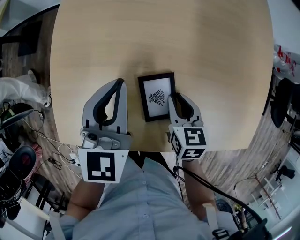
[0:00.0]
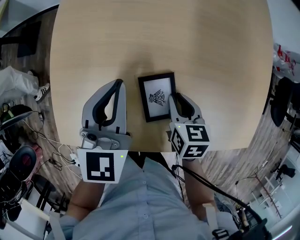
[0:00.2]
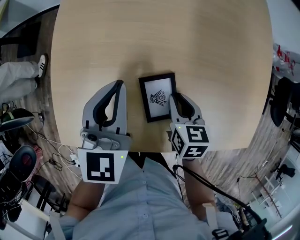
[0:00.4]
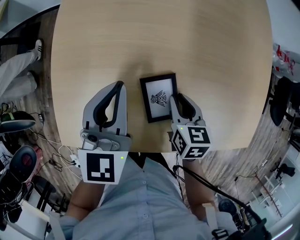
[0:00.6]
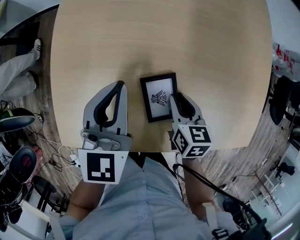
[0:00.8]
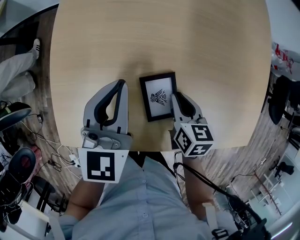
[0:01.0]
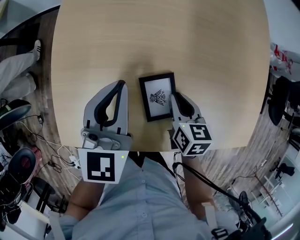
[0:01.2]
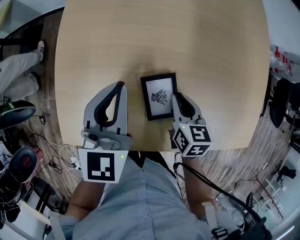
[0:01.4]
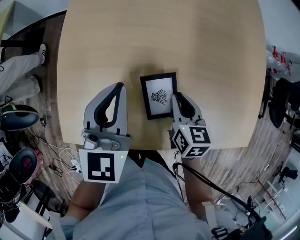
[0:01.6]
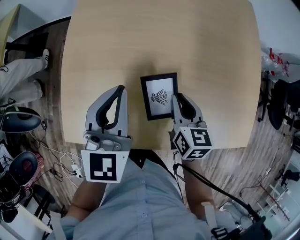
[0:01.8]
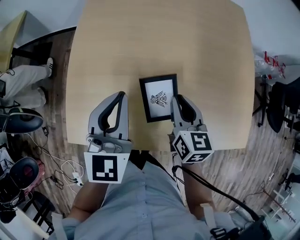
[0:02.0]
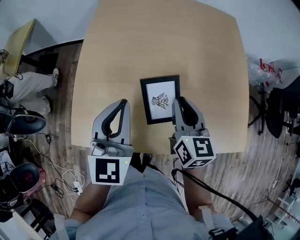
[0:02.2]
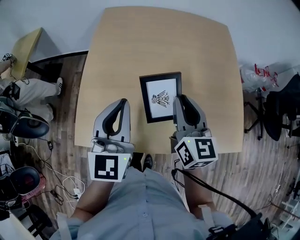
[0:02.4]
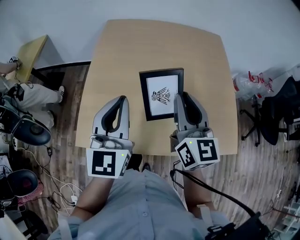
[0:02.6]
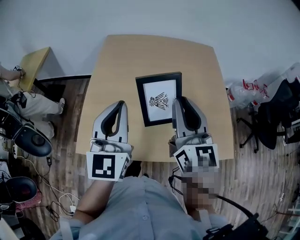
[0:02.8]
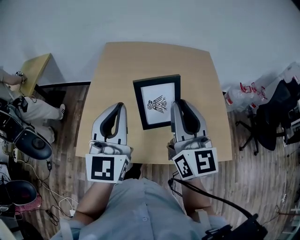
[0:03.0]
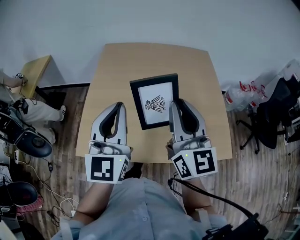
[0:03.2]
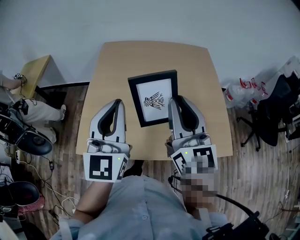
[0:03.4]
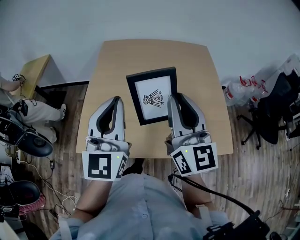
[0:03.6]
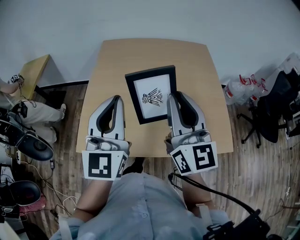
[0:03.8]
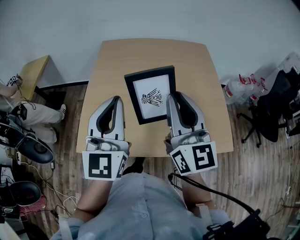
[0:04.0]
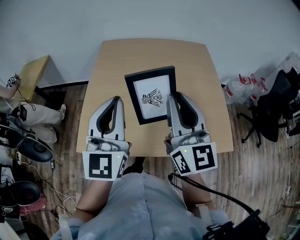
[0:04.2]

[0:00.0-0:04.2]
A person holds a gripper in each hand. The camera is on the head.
0:00.0 to 0:01.4: The grippers make only small movements.
0:01.4 to 0:02.8: The right gripper goes approximately 30 cm upward, and tilts its fingers roughly 50 degrees upward; the left gripper goes approximately 20 cm upward and backward, and changes its angle by about 30 degrees.
0:02.8 to 0:04.2: The grippers stay close to where they were, moving slightly.

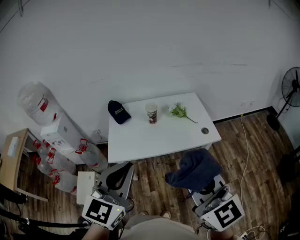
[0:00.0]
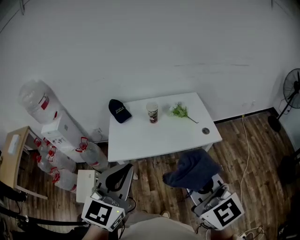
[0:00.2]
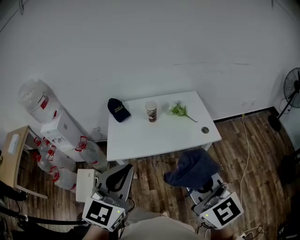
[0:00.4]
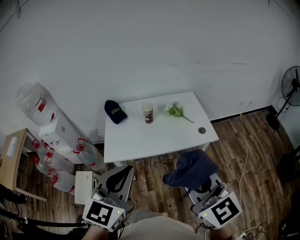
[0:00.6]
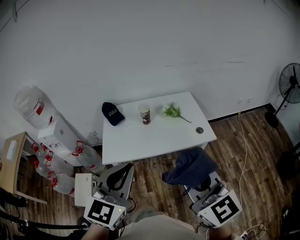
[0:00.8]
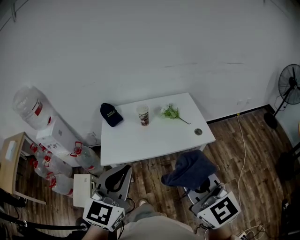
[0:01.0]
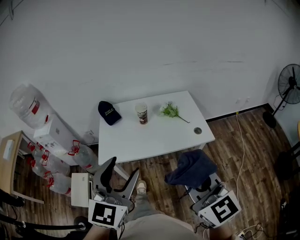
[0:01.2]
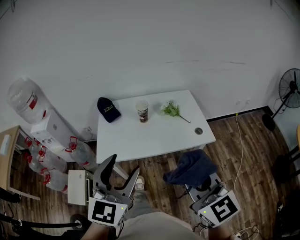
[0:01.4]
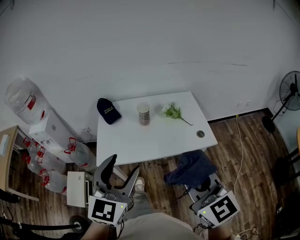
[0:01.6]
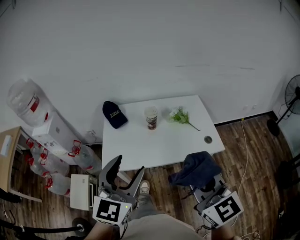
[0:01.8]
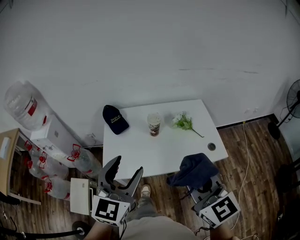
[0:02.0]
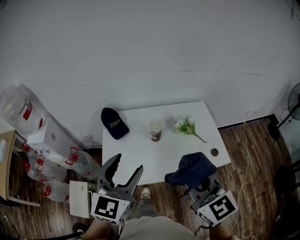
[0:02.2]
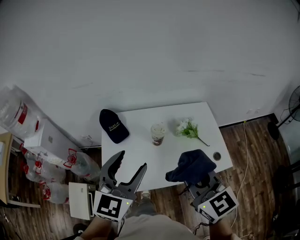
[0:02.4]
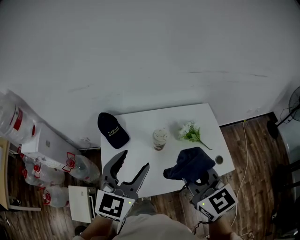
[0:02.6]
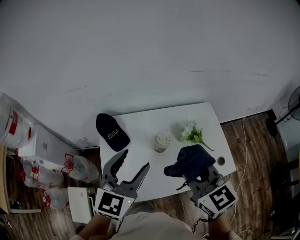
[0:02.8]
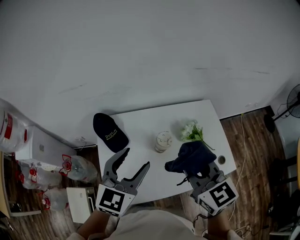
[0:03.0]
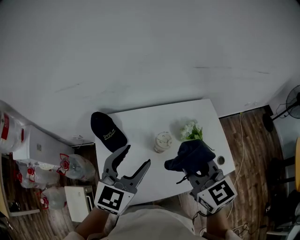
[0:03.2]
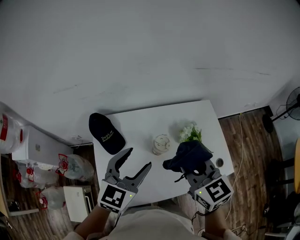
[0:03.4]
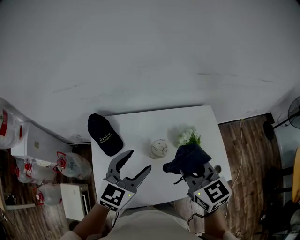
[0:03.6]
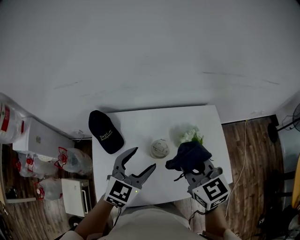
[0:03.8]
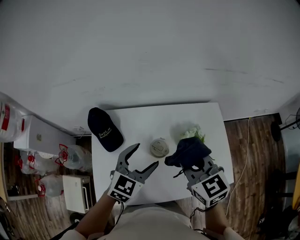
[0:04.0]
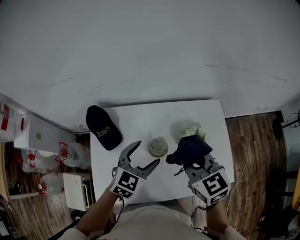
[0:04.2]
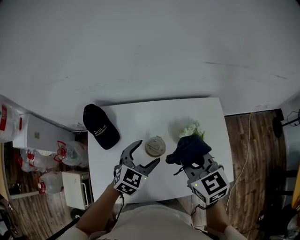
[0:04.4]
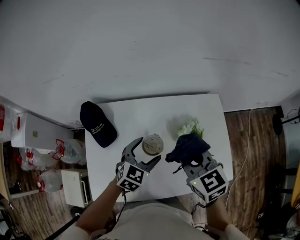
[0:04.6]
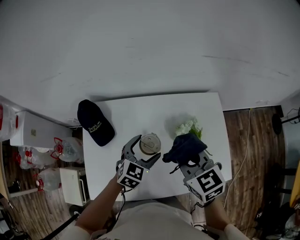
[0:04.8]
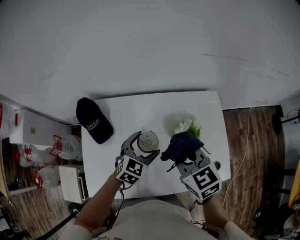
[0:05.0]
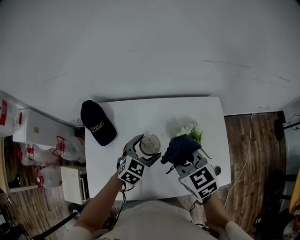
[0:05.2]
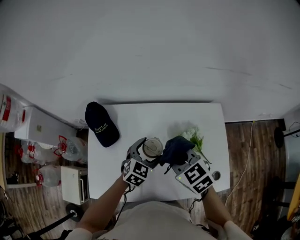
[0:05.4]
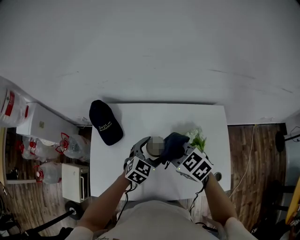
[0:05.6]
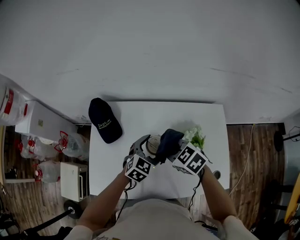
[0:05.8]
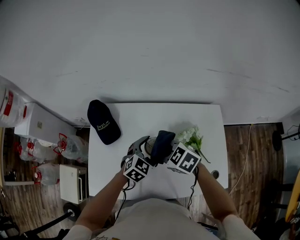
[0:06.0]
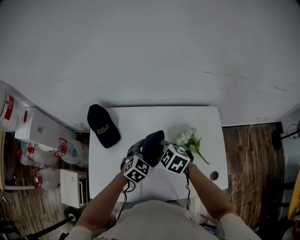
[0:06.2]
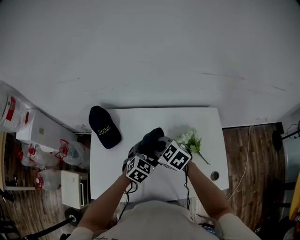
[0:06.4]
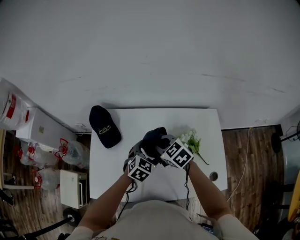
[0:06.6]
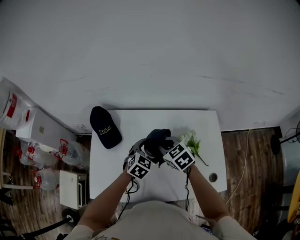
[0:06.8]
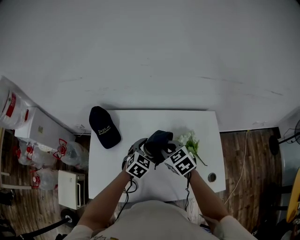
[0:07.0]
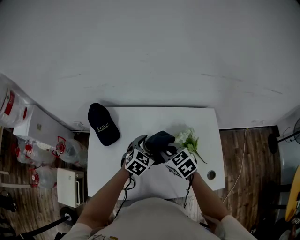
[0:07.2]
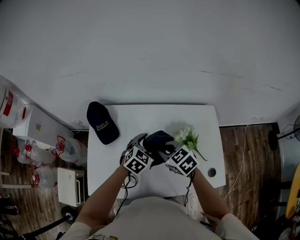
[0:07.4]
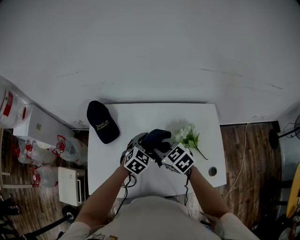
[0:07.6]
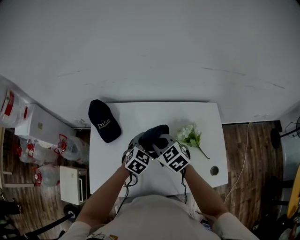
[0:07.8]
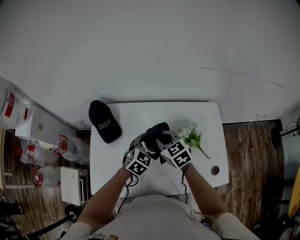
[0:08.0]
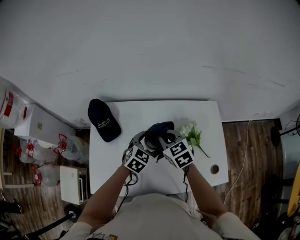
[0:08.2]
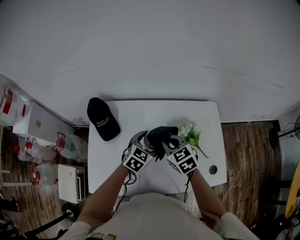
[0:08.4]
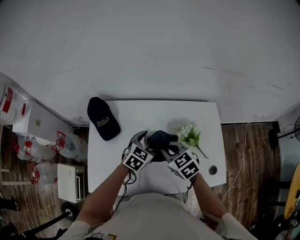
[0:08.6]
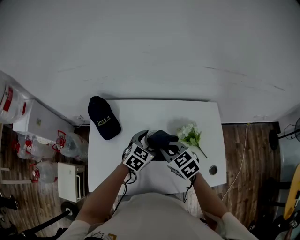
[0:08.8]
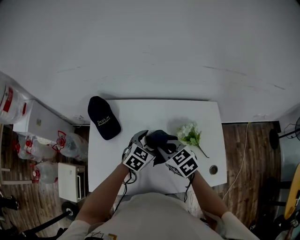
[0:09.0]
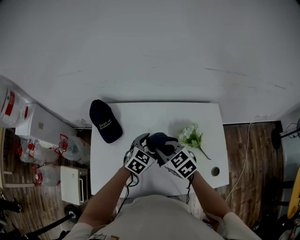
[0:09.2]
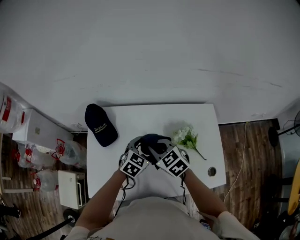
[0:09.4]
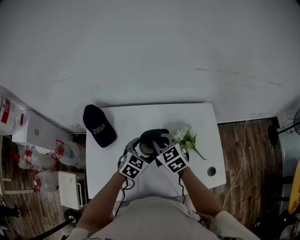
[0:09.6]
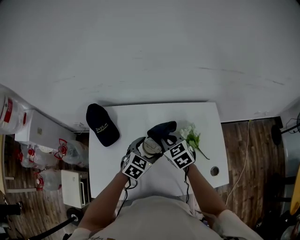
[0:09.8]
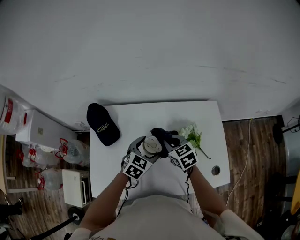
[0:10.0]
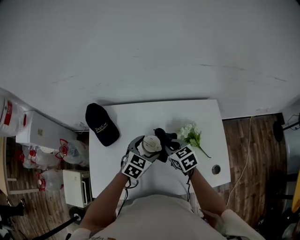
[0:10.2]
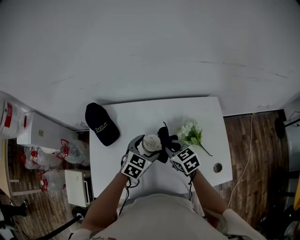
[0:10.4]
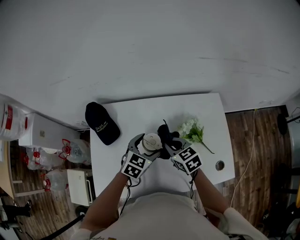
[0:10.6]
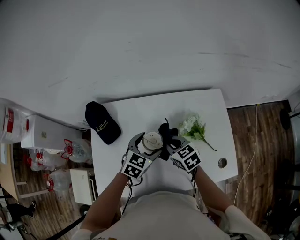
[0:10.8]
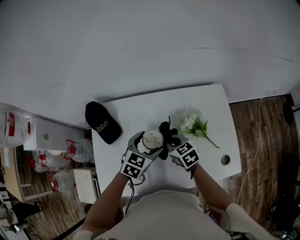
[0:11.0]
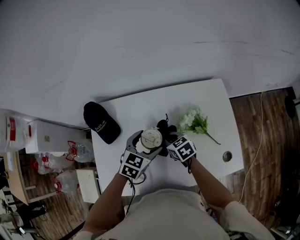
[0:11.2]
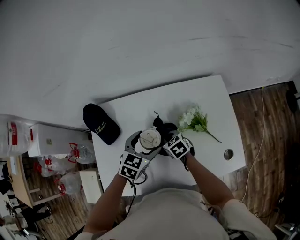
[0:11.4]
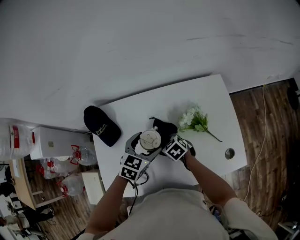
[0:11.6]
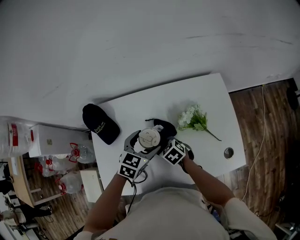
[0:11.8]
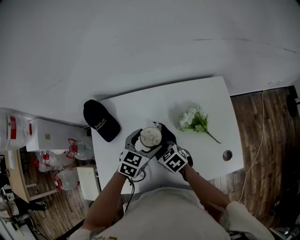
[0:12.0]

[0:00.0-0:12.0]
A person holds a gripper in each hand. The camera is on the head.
0:00.0 to 0:01.6: The right gripper heads forward and downward, covering approximately 10 cm, while the left gripper shifts approximately 10 cm forward, and opens up.
0:01.6 to 0:03.0: The grippers both shift forward by approximately 40 cm.
0:03.0 to 0:04.4: The right gripper shifts about 15 cm forward, downward and to the right. The left gripper moves downward, to the right and forward, some 25 cm.
0:04.4 to 0:06.0: The right gripper goes about 15 cm downward and to the left, and changes its angle by about 40 degrees. Meanwhile the left gripper ends up about 5 cm from where it was.
0:07.6 to 0:09.0: The grippers move only a little.
0:09.0 to 0:10.4: The right gripper moves approximately 5 cm.
0:10.4 to 0:12.0: The right gripper travels downward by about 5 cm.

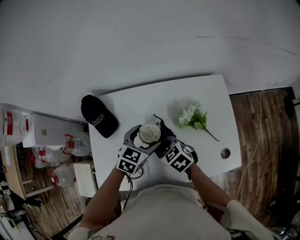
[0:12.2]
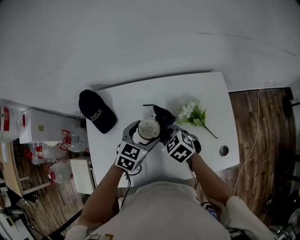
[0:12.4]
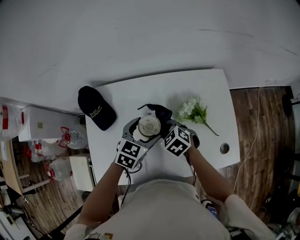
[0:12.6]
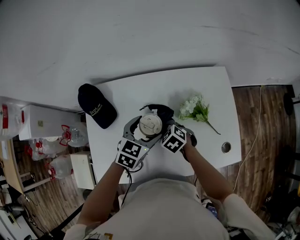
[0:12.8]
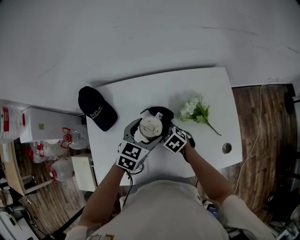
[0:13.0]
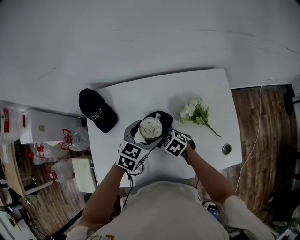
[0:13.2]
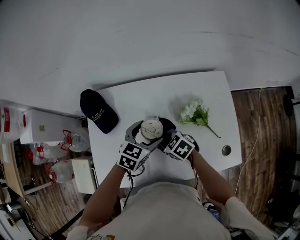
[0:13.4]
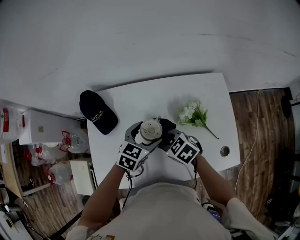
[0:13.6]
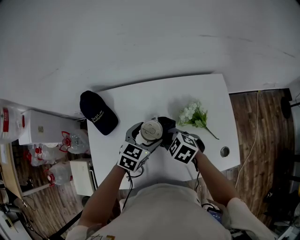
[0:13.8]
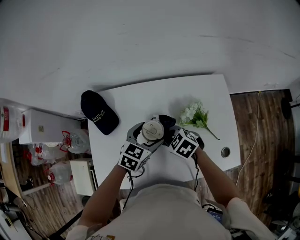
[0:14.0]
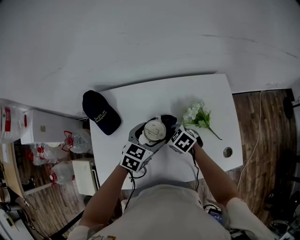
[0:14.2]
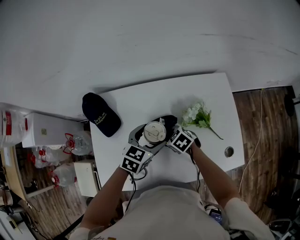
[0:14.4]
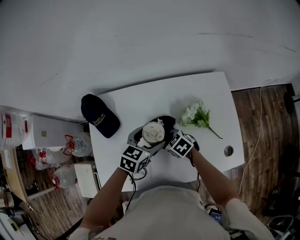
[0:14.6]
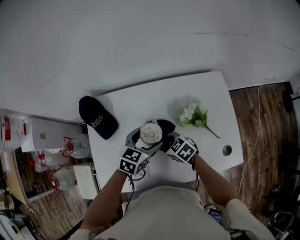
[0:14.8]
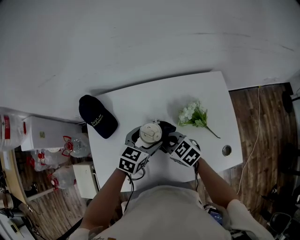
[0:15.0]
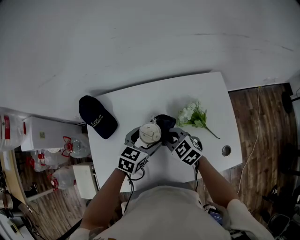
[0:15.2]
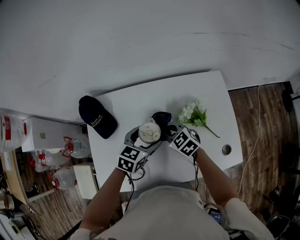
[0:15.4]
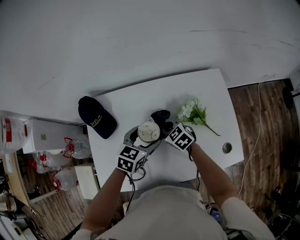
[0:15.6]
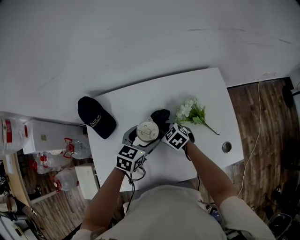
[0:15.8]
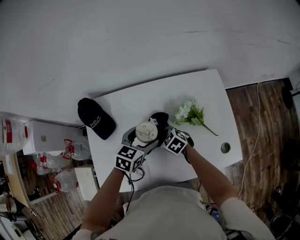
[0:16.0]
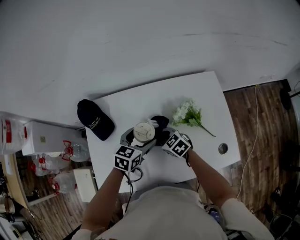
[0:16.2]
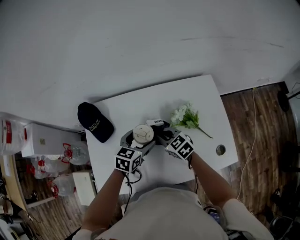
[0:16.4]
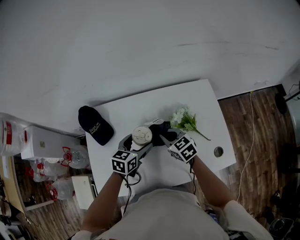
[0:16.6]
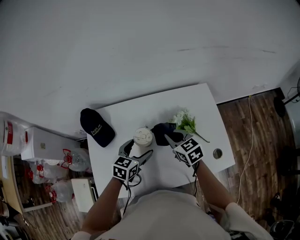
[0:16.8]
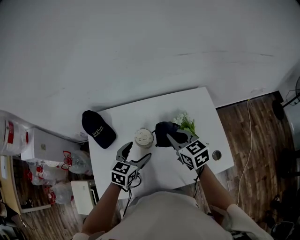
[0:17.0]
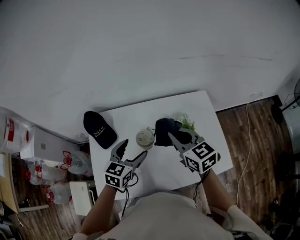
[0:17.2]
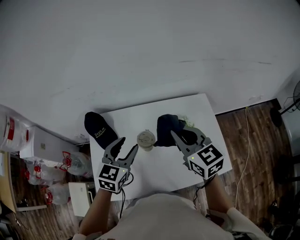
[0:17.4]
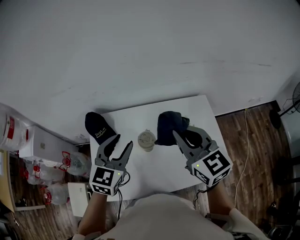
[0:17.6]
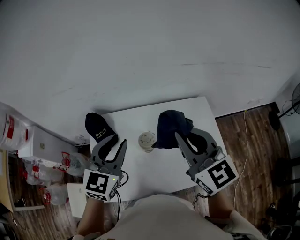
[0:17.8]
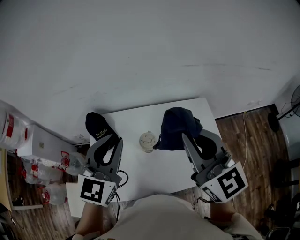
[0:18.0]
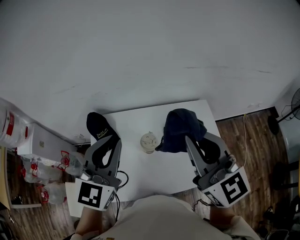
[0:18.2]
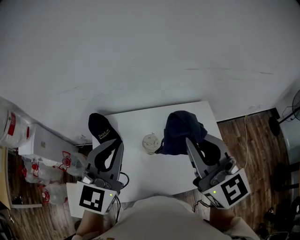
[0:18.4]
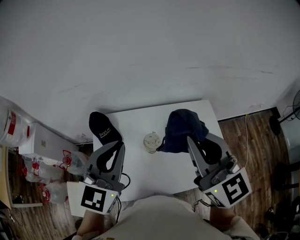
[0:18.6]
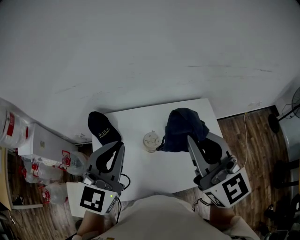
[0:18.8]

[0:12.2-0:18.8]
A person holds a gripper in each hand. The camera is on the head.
0:12.2 to 0:13.8: The right gripper travels downward and back again, about 10 cm each way.
0:13.8 to 0:15.4: The right gripper goes downward and returns, approximately 10 cm each way.
0:15.4 to 0:17.2: The right gripper heads upward, covering about 20 cm, and changes its angle by approximately 30 degrees. Meanwhile the left gripper goes some 10 cm upward.
0:17.2 to 0:18.8: Both grippers travel together upward, approximately 20 cm. The right gripper changes its angle by some 30 degrees. Meanwhile the left gripper swivels roughly 30 degrees, and closes.

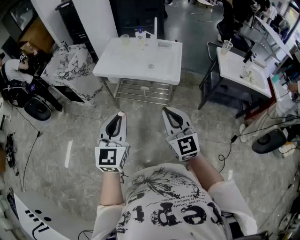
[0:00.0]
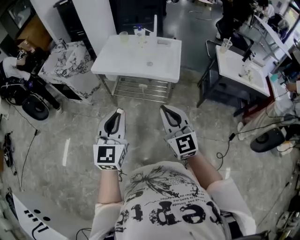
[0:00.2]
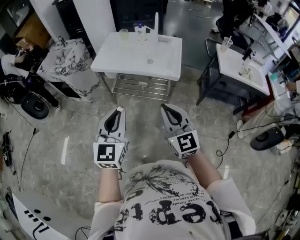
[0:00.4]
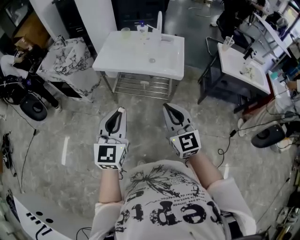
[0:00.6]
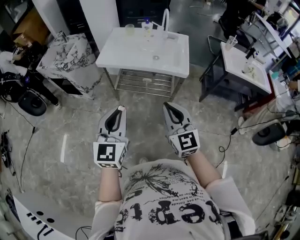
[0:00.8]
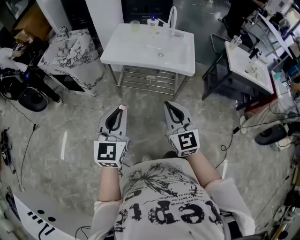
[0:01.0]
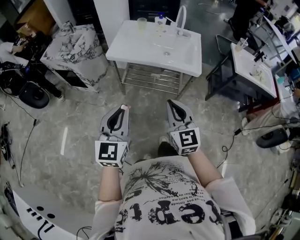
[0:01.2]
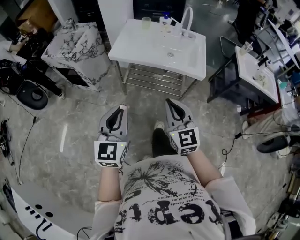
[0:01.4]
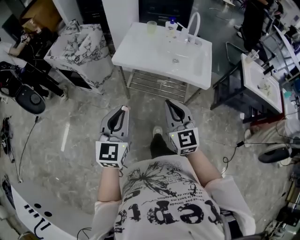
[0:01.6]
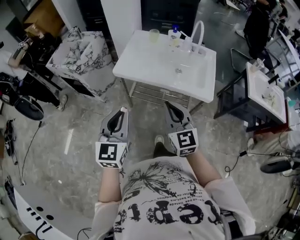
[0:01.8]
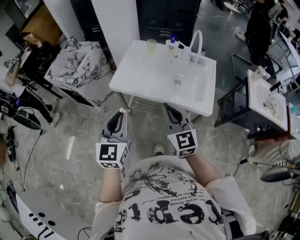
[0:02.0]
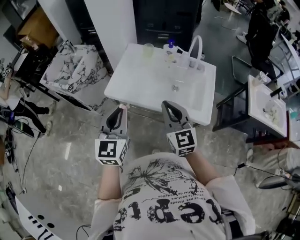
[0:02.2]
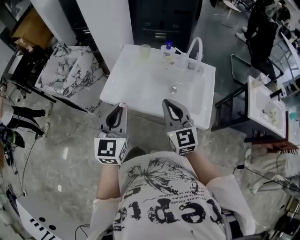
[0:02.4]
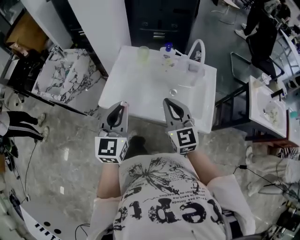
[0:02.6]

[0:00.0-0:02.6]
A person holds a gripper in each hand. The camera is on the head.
0:00.0 to 0:01.2: The two grippers go about 15 cm to the left.
0:01.2 to 0:02.6: The two grippers travel together, forward, roughly 40 cm.
